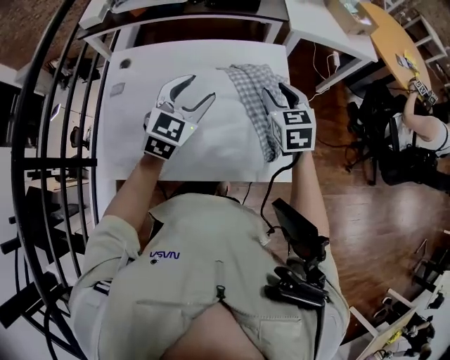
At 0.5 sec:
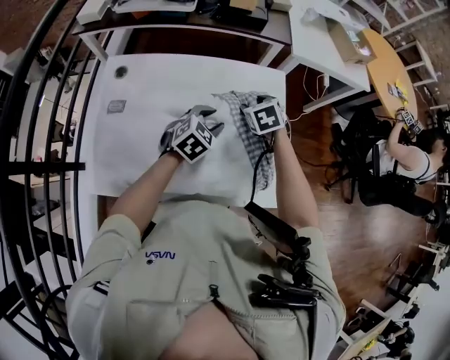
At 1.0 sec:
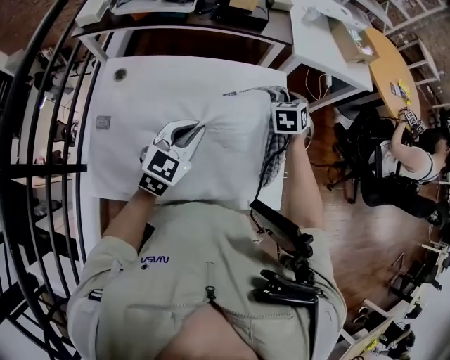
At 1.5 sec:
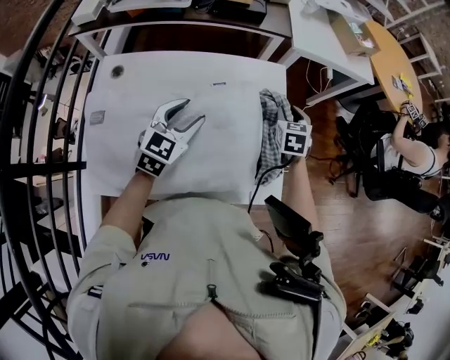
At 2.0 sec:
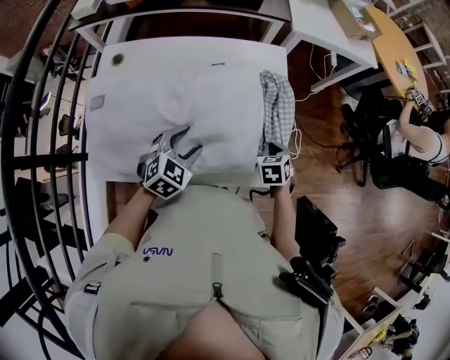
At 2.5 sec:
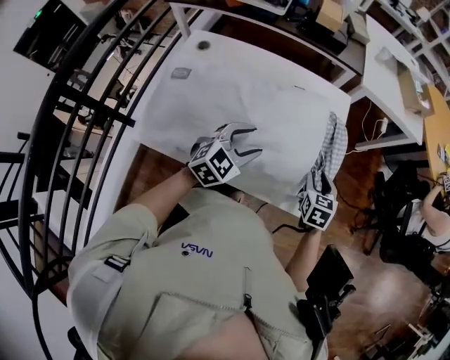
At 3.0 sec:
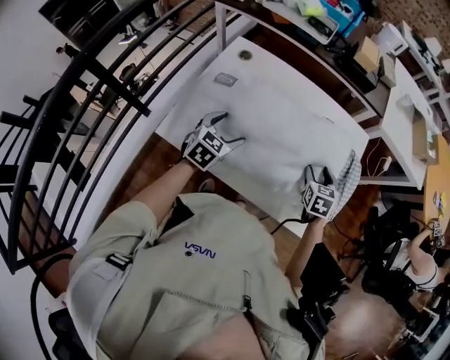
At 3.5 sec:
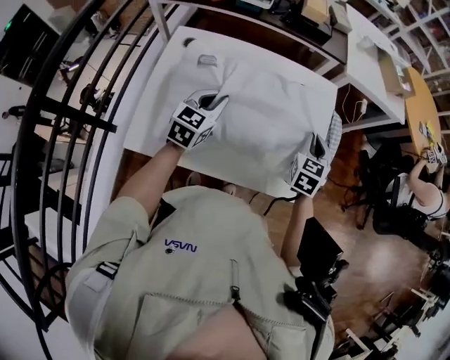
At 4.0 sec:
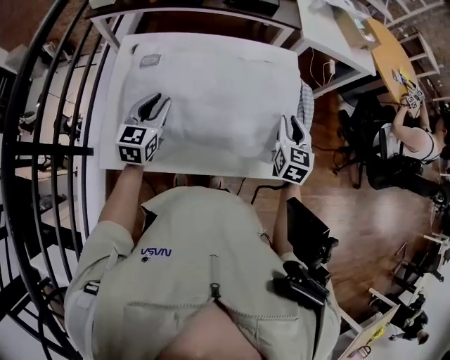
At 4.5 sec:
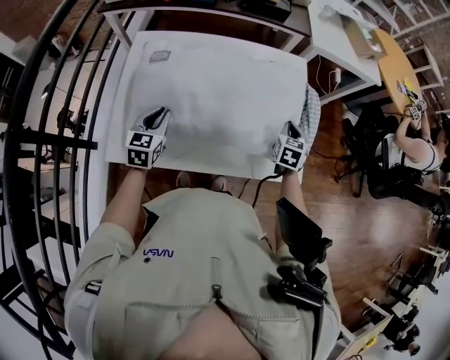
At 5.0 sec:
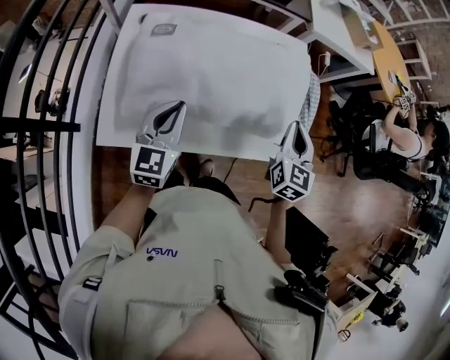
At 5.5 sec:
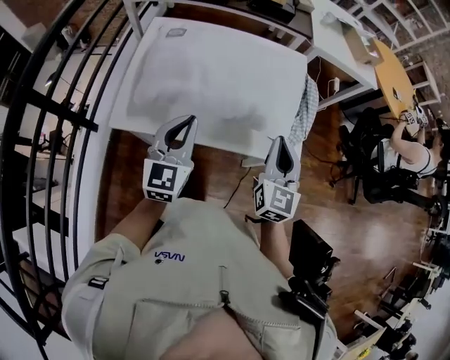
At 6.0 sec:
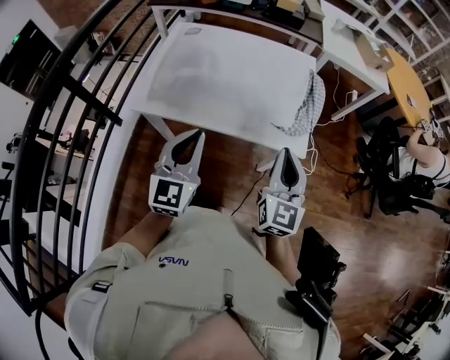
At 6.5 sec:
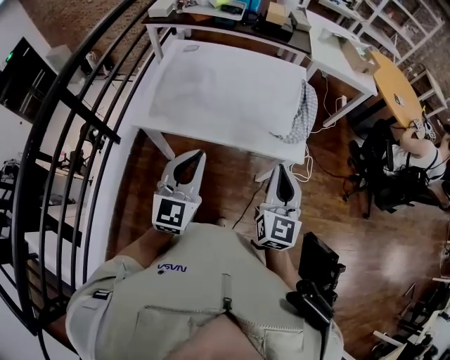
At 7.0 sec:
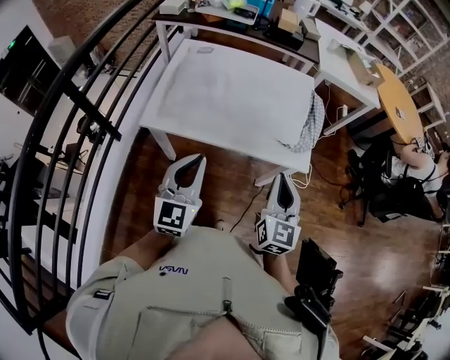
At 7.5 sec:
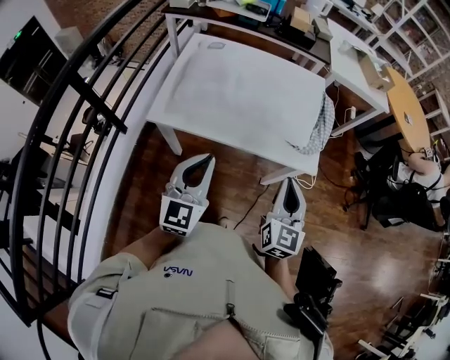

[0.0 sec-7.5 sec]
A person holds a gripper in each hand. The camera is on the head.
0.0 sec to 2.0 sec: The right gripper heads downward, to the right and backward, covering approximately 25 cm, turns by about 30 degrees, and closes, while the left gripper moves downward and backward, roughly 15 cm, changes its angle by approximately 20 degrees, and closes, then opens again.
2.0 sec to 4.0 sec: The left gripper travels to the left by roughly 20 cm, turns by some 40 degrees, and closes its fingers, while the right gripper travels upward and to the left by approximately 15 cm, tilts its fingers about 40 degrees upward, and opens up.
4.0 sec to 5.5 sec: The left gripper is displaced backward, to the right and upward by some 25 cm, while the right gripper goes roughly 20 cm backward and upward, and closes.
5.5 sec to 7.5 sec: The grippers both shift backward by some 15 cm.

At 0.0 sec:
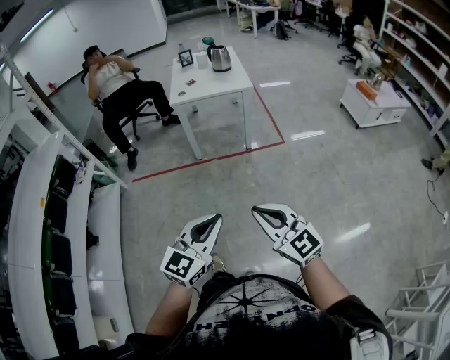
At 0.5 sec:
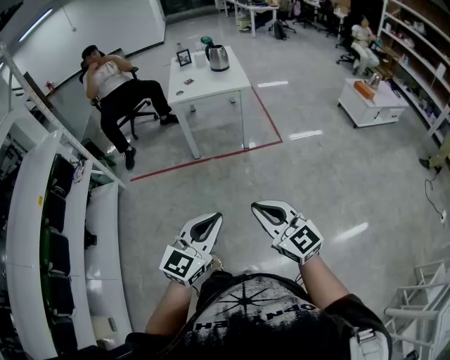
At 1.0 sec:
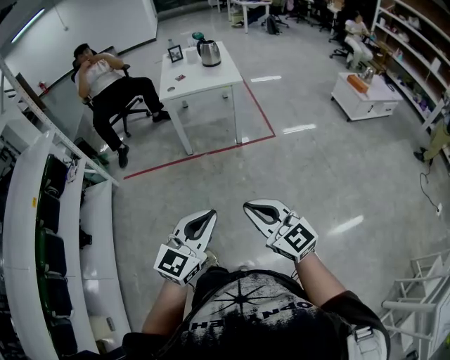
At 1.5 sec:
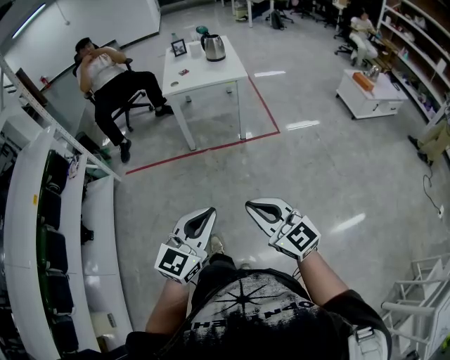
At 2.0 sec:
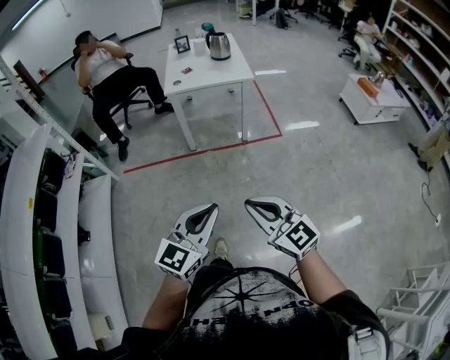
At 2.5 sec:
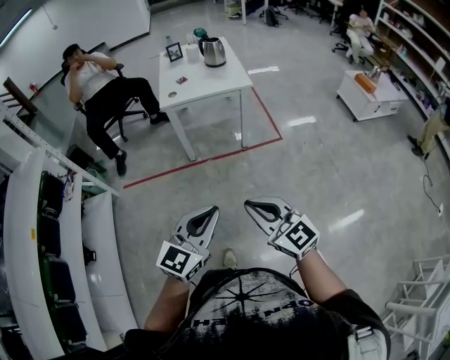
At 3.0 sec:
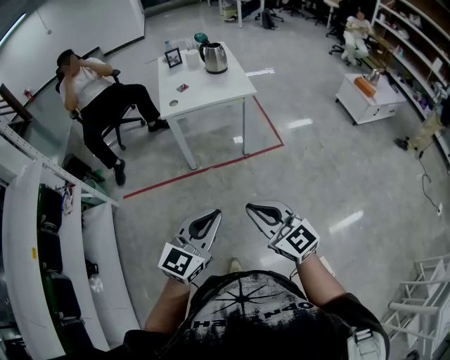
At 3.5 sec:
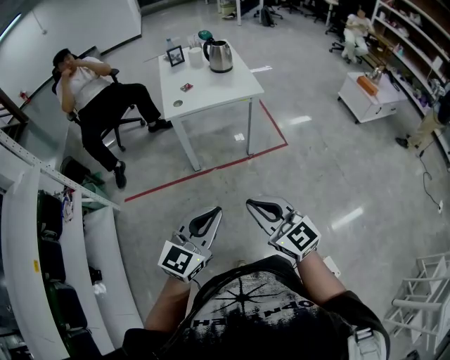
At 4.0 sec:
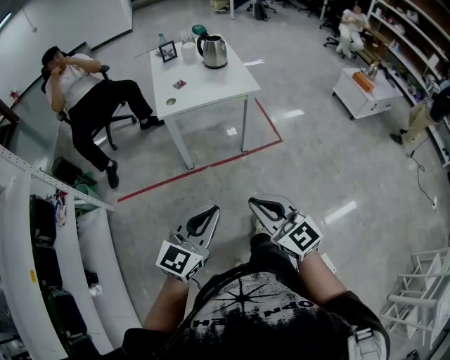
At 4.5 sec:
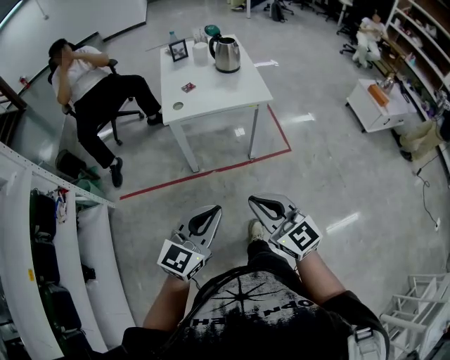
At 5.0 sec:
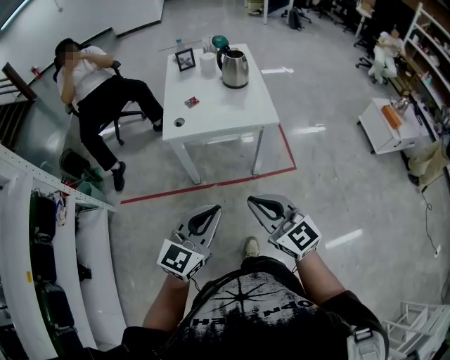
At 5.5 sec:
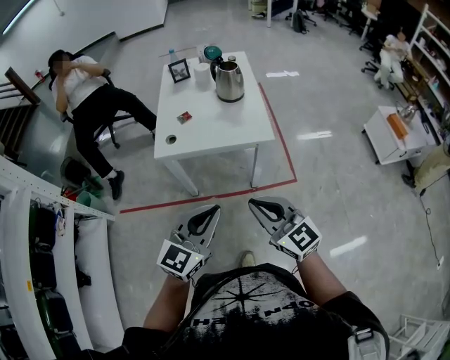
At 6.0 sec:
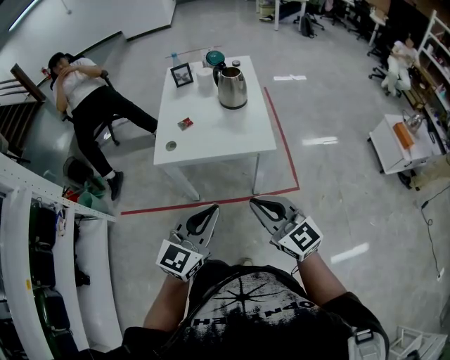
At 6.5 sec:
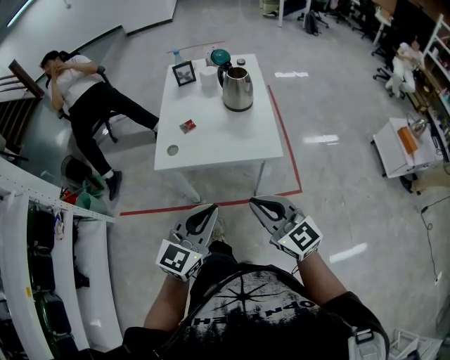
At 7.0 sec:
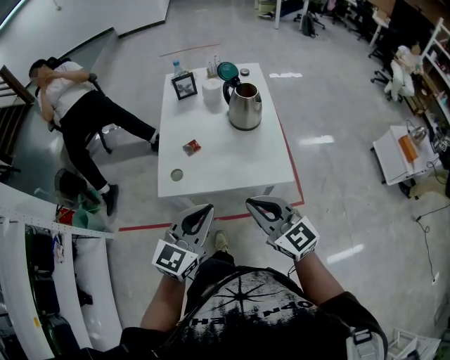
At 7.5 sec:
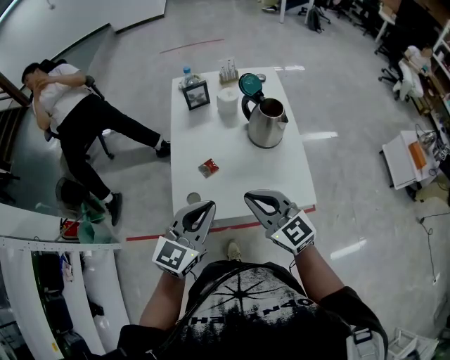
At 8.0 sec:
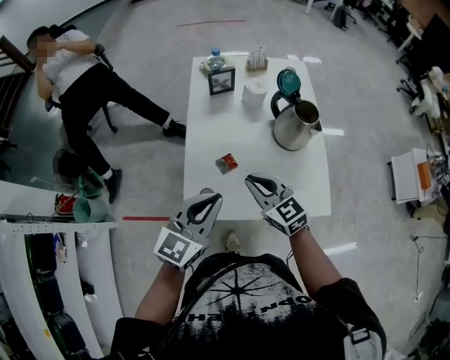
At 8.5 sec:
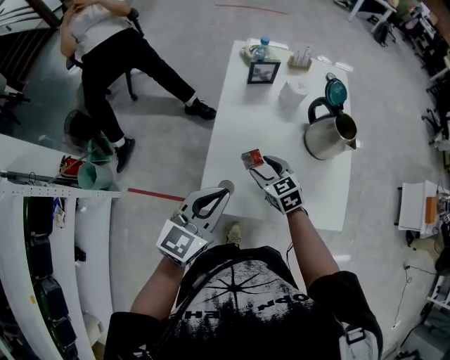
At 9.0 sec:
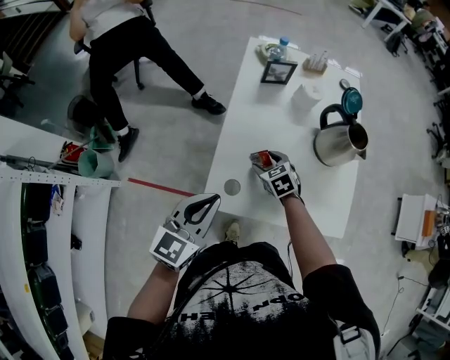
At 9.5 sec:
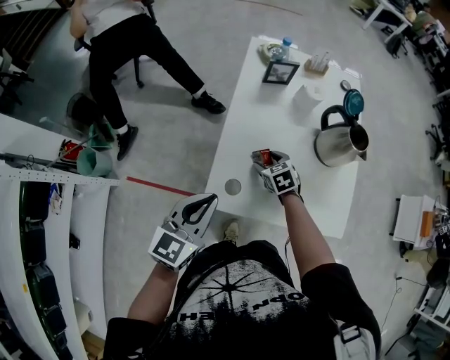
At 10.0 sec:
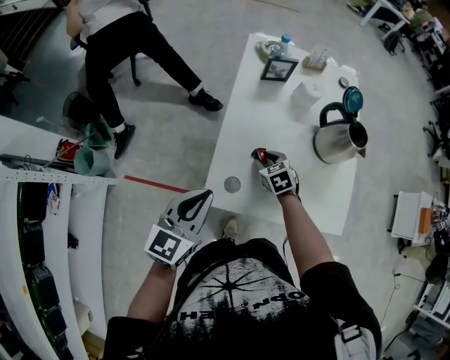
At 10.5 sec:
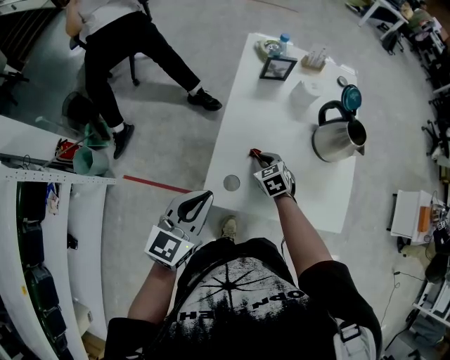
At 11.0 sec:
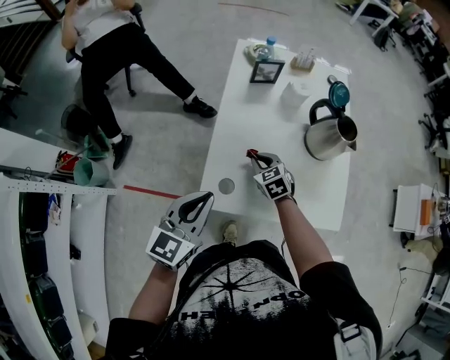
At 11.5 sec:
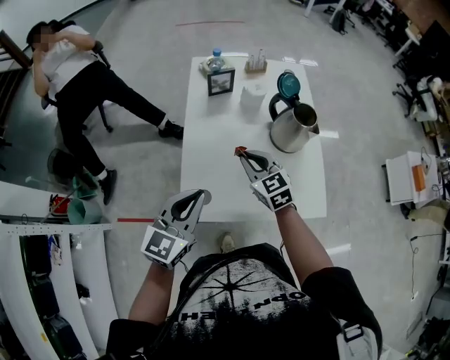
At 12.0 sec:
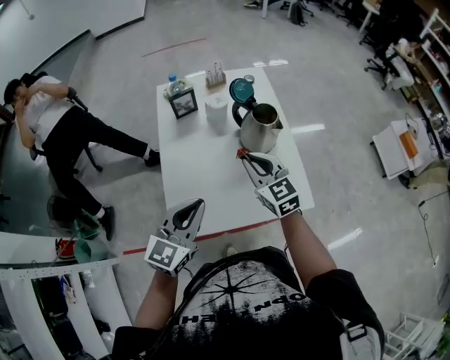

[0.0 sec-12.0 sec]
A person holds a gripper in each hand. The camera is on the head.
0.0 sec to 2.0 sec: The two grippers go roughly 5 cm forward.
2.0 sec to 4.0 sec: The grippers both shift forward and to the left by roughly 25 cm.
4.0 sec to 6.0 sec: Both grippers travel together forward and to the right, roughly 35 cm.
6.0 sec to 8.0 sec: Both grippers are carried forward and to the left, approximately 40 cm.
8.0 sec to 10.0 sec: The left gripper moves to the left, approximately 10 cm; the right gripper travels downward and forward by about 20 cm, points its fingers approximately 30 degrees further downward, and opens.
10.0 sec to 12.0 sec: The left gripper travels to the right by roughly 15 cm, and swivels roughly 20 degrees. The right gripper is displaced upward and to the right by about 30 cm, angles its fingers upward, by approximately 40 degrees, and closes its fingers.

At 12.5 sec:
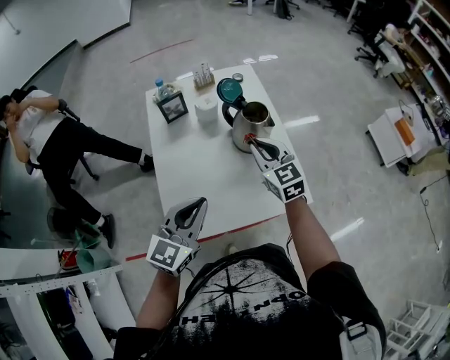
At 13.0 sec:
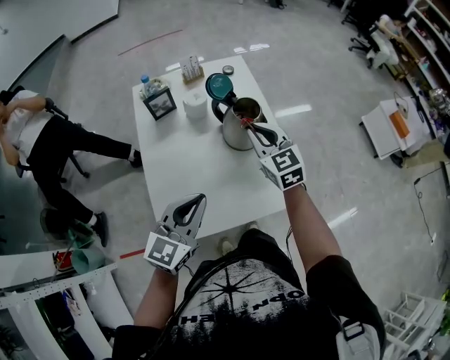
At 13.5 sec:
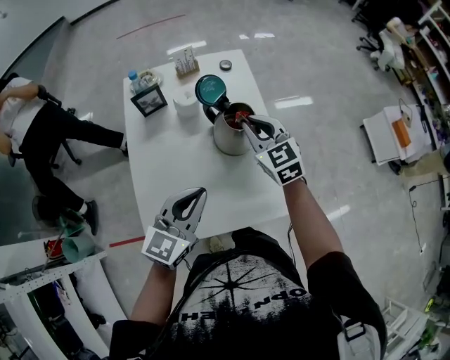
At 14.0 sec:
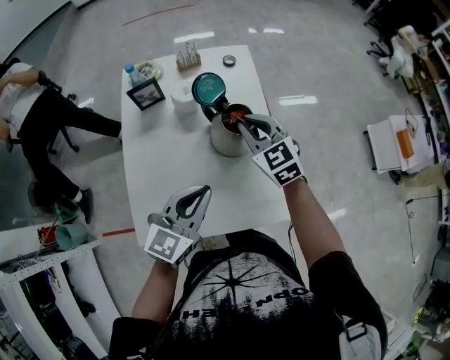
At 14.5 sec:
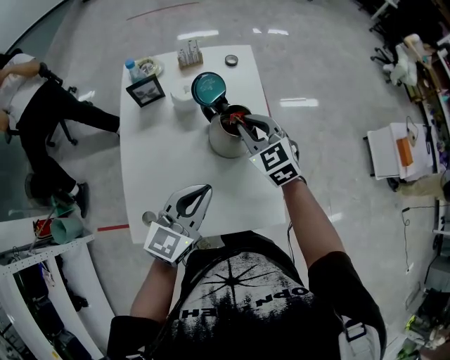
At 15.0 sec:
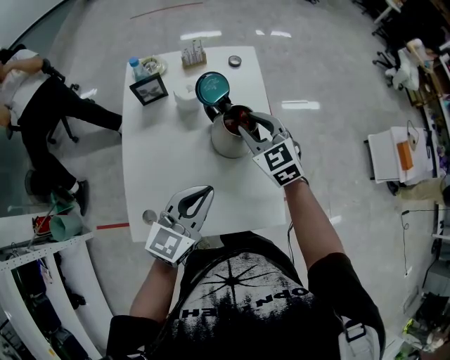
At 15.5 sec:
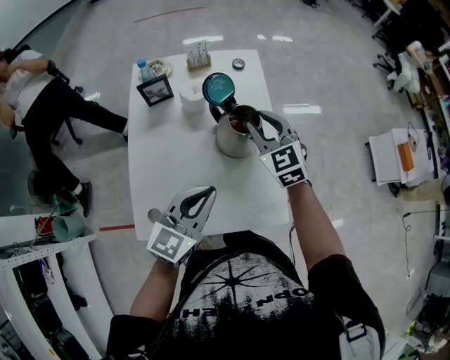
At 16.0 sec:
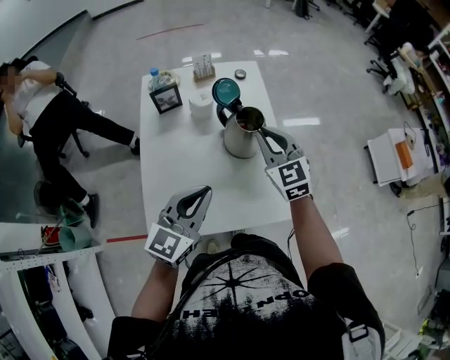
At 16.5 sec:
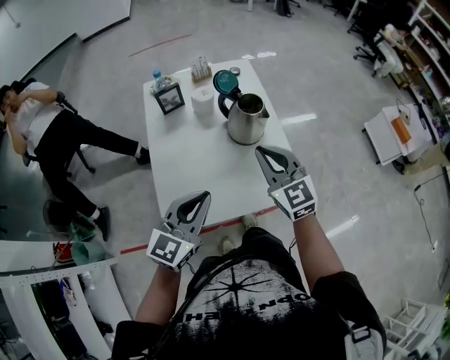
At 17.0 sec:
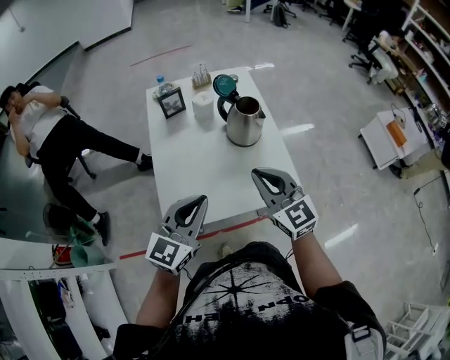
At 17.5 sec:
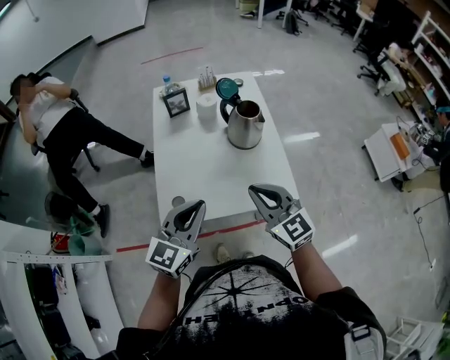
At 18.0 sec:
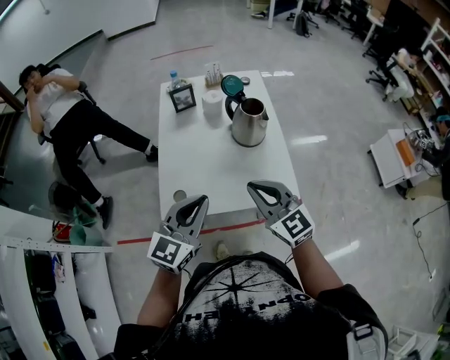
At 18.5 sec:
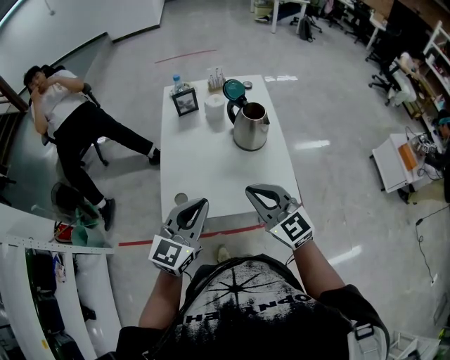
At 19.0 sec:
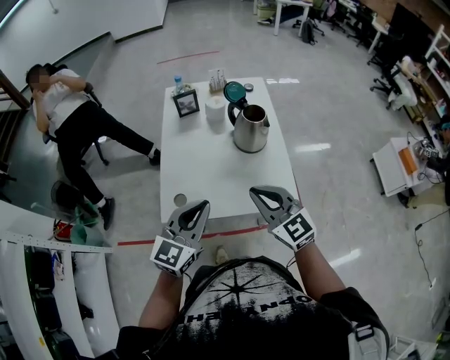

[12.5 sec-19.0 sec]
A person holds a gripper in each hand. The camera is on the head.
12.5 sec to 14.5 sec: The left gripper heads forward and to the right, covering roughly 15 cm. Meanwhile the right gripper is displaced forward by some 10 cm, and rotates about 20 degrees.
14.5 sec to 17.0 sec: The left gripper heads backward and to the left, covering approximately 20 cm. The right gripper goes approximately 30 cm backward, and changes its angle by approximately 20 degrees.
17.0 sec to 19.0 sec: The grippers stay close to where they were, moving slightly.
